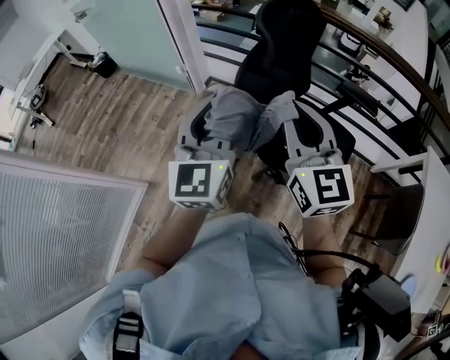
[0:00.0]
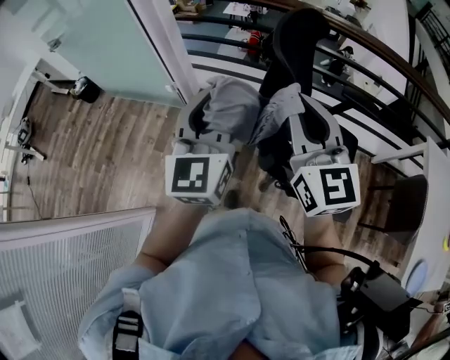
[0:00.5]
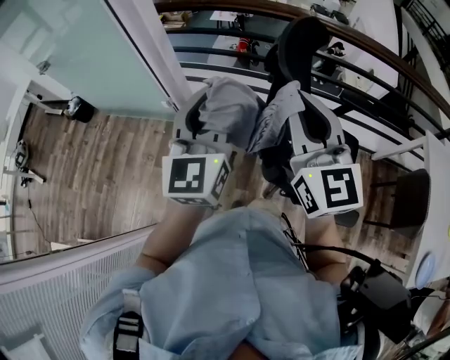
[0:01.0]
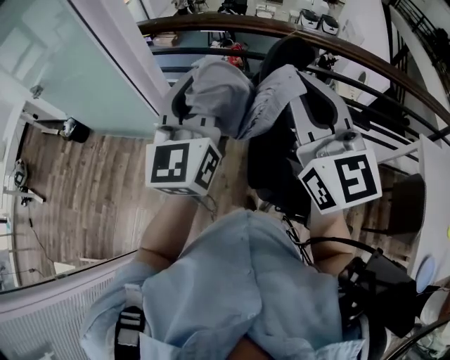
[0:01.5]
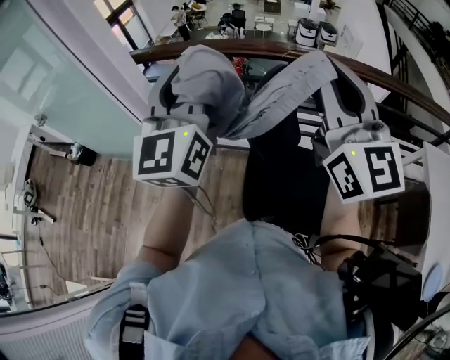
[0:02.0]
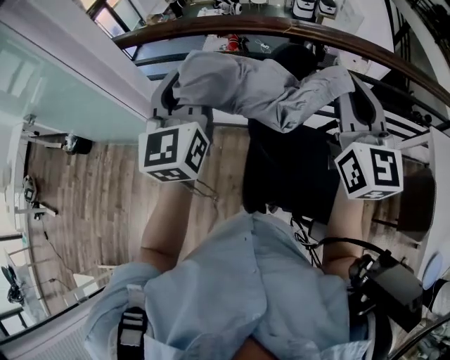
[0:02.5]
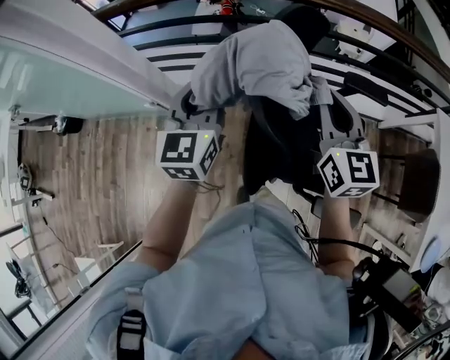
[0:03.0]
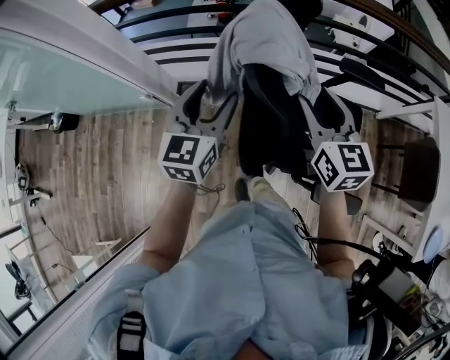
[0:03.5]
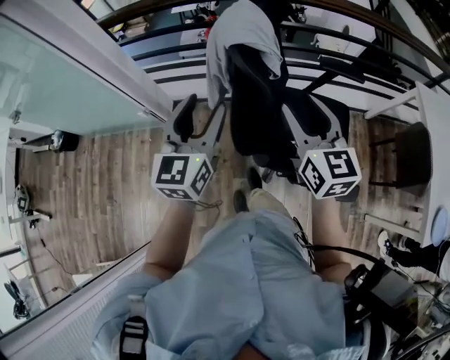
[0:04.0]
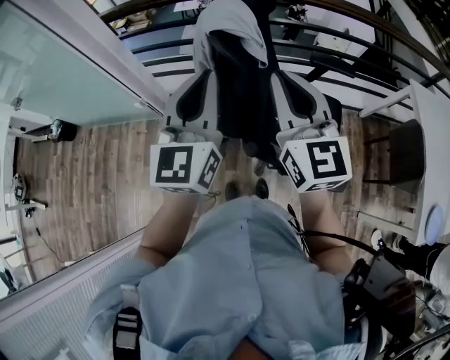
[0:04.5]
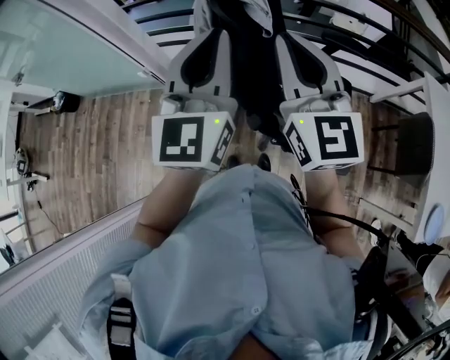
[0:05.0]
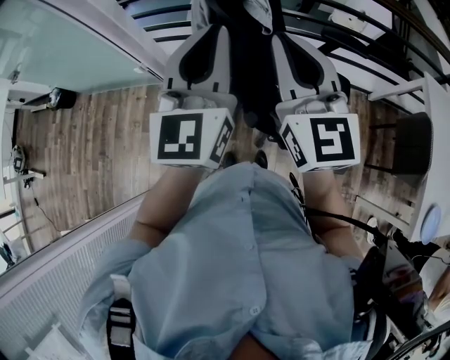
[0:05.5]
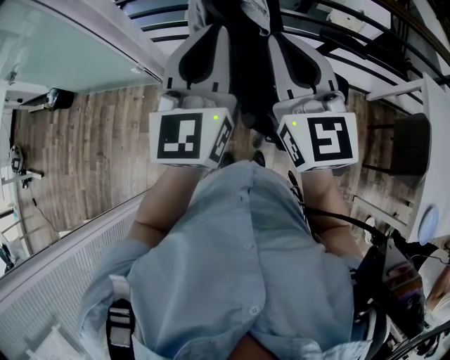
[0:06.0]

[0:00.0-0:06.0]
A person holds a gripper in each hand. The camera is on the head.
0:00.0 to 0:02.0: Both grippers move forward and upward, some 35 cm. The left gripper swivels approximately 20 degrees, while the right gripper turns by some 20 degrees.
0:02.0 to 0:04.0: The grippers both shift downward and backward by approximately 25 cm. The left gripper turns by some 30 degrees, and opens, while the right gripper rotates approximately 30 degrees, and opens.
0:04.0 to 0:06.0: The left gripper heads upward and to the right, covering approximately 15 cm, and closes up. The right gripper goes roughly 10 cm upward, and closes its fingers.

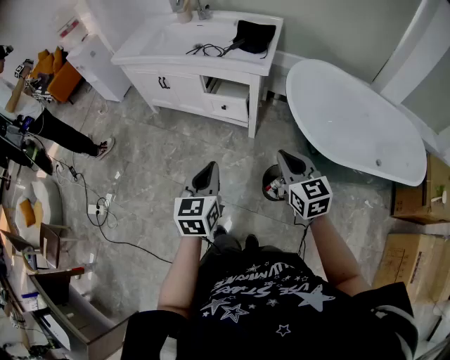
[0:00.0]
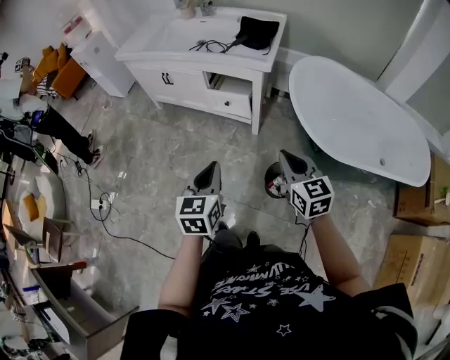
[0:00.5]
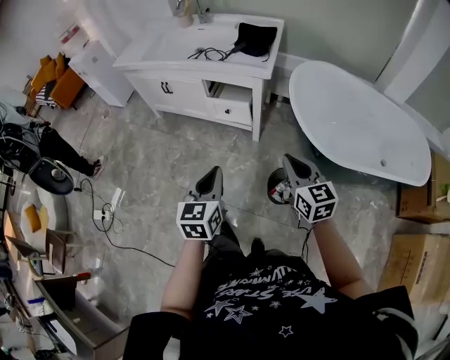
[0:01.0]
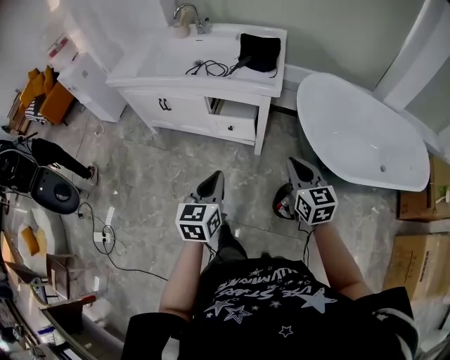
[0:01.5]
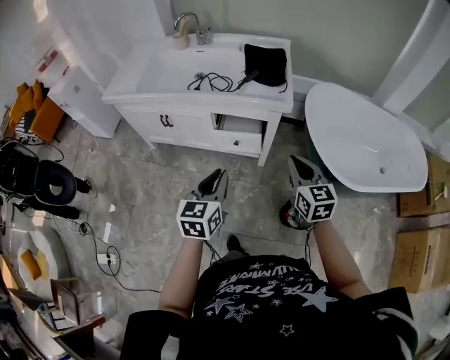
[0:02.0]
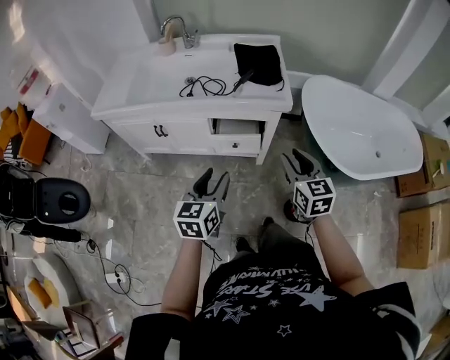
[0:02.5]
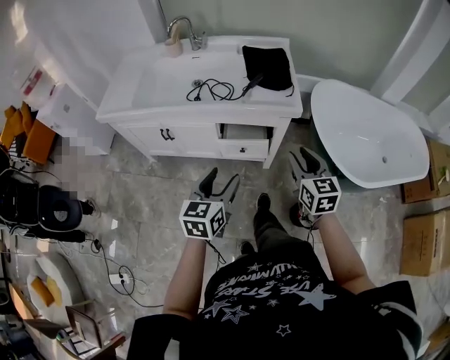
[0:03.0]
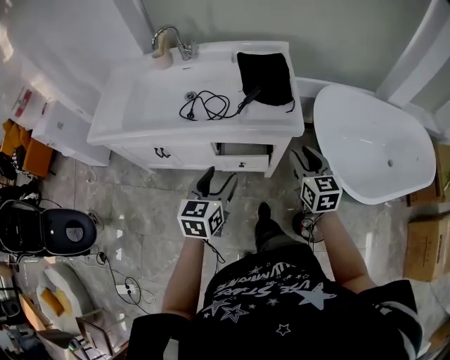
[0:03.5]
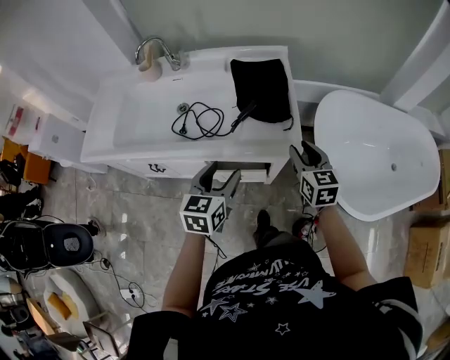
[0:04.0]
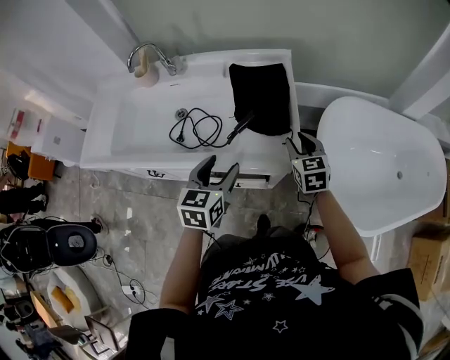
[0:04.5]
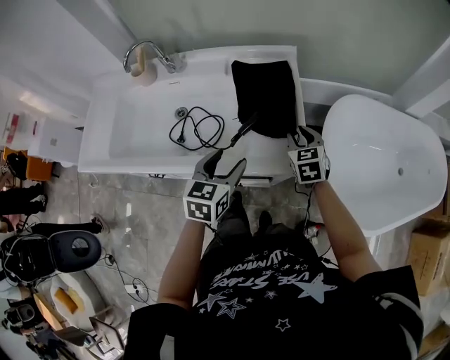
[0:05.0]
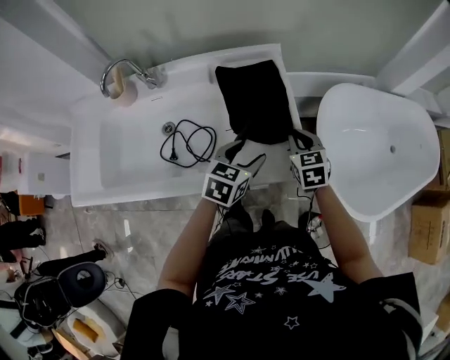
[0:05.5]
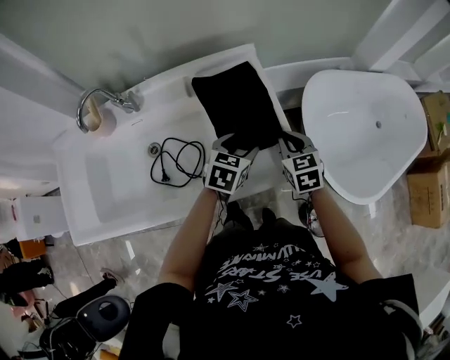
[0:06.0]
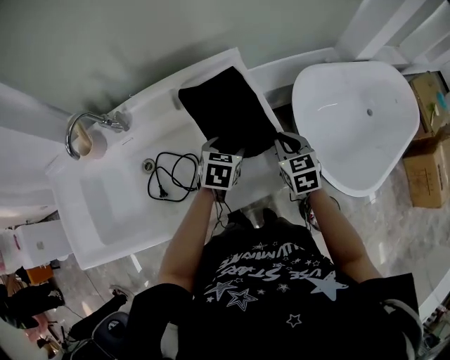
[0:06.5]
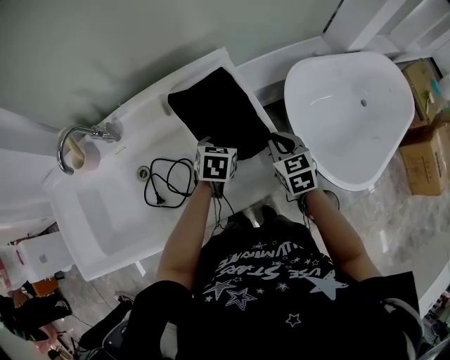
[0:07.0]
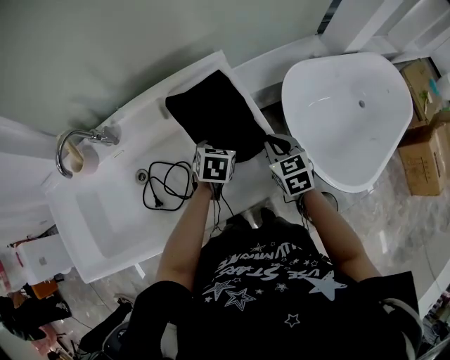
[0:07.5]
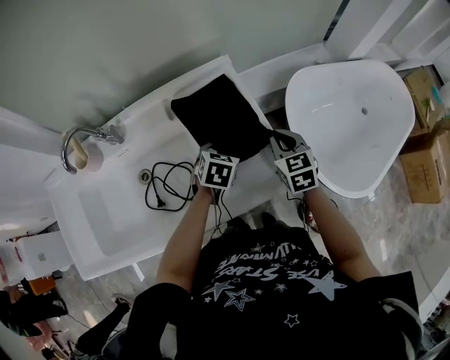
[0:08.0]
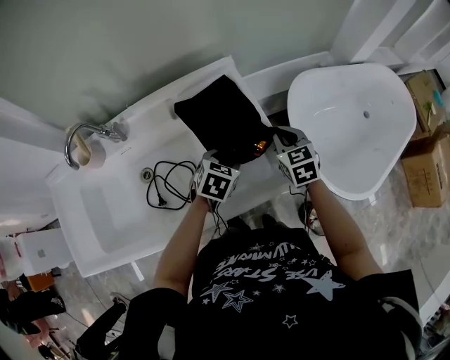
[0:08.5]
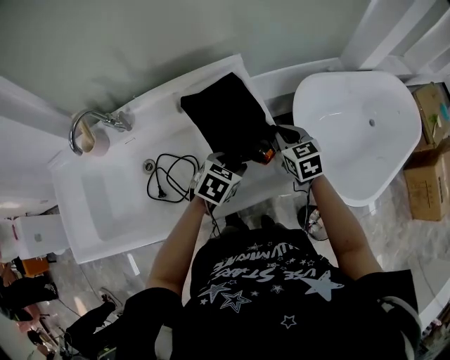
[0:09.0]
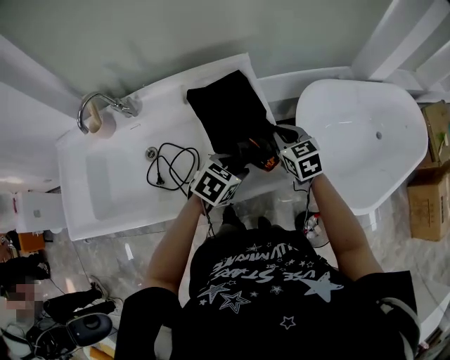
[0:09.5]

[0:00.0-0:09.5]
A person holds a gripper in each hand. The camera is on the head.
0:00.0 to 0:02.0: Both grippers travel together forward and to the left, approximately 20 cm.
0:02.0 to 0:04.0: The two grippers go approximately 30 cm forward. The left gripper opens its fingers. Meanwhile the right gripper opens up.
0:04.0 to 0:05.5: The right gripper heads forward and downward, covering roughly 15 cm, and closes. Meanwhile the left gripper travels forward by approximately 15 cm, and changes its angle by roughly 30 degrees.
0:05.5 to 0:07.5: The left gripper goes roughly 15 cm forward and downward.
0:07.5 to 0:09.5: The left gripper shifts some 10 cm backward and to the right.

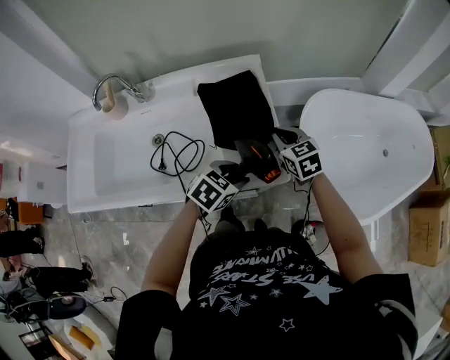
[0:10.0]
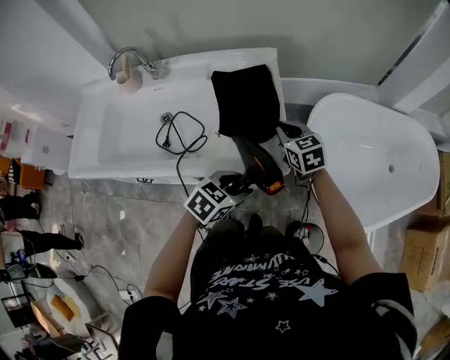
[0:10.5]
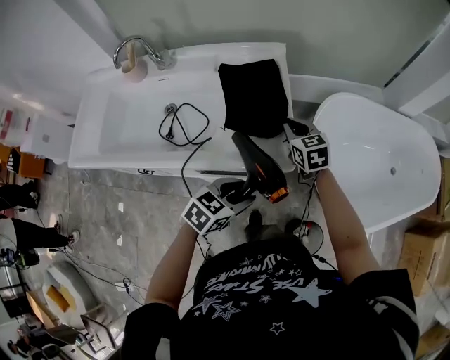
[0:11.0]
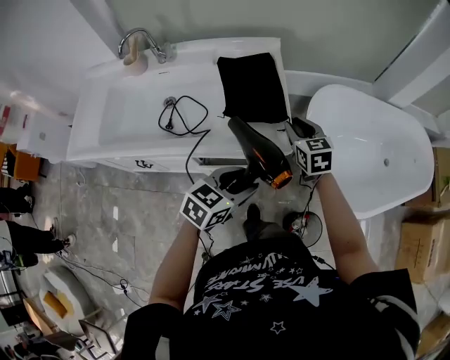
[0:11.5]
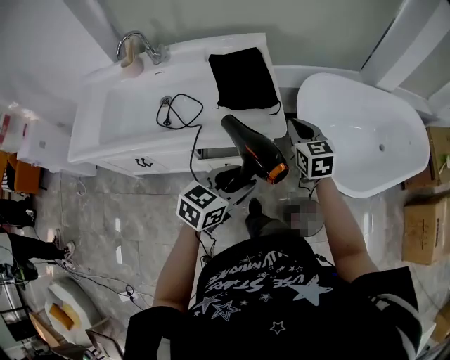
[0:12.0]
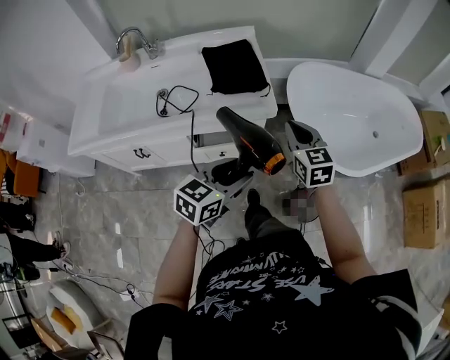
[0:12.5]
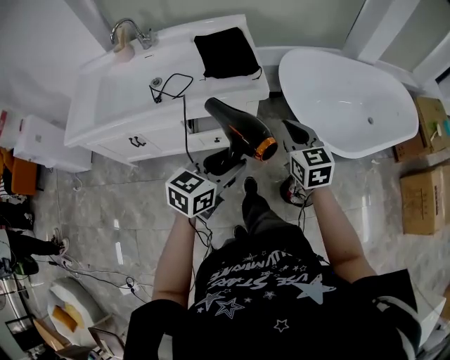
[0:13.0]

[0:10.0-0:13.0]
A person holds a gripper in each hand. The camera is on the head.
0:10.0 to 0:11.5: The left gripper travels backward by approximately 15 cm, and rotates roughly 20 degrees, while the right gripper goes about 5 cm backward, and opens its fingers.
0:11.5 to 0:13.0: The right gripper shifts roughly 25 cm backward and to the right, and closes. The left gripper shifts roughly 15 cm backward.

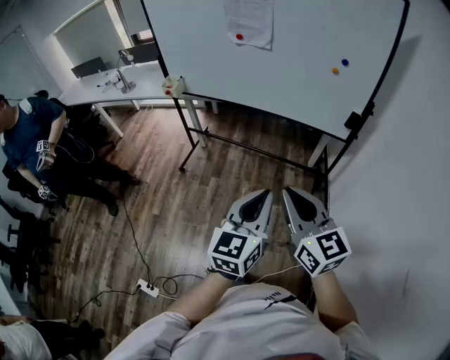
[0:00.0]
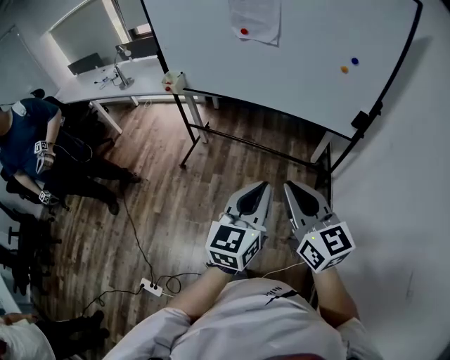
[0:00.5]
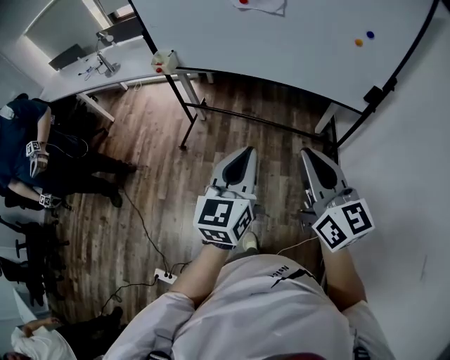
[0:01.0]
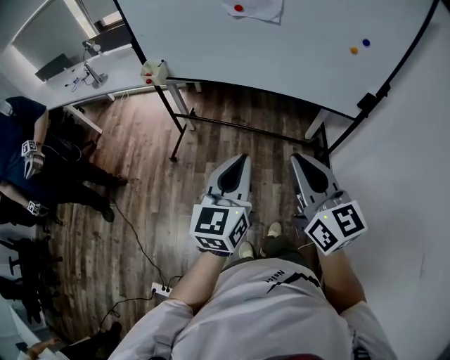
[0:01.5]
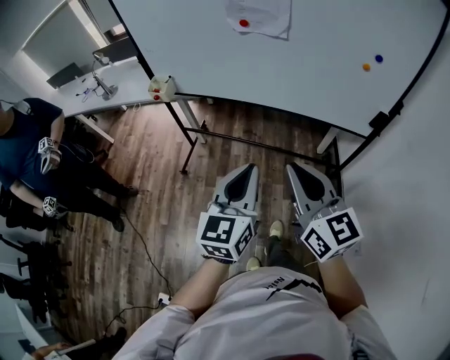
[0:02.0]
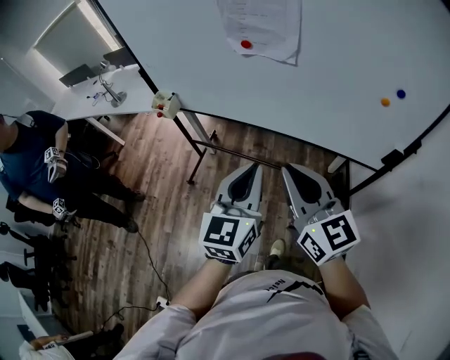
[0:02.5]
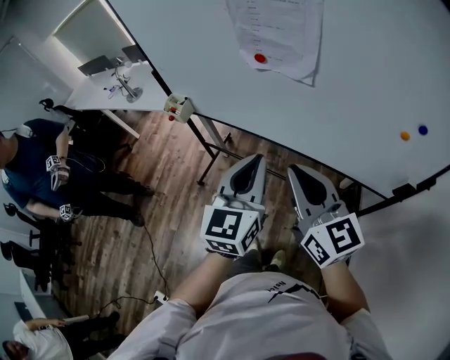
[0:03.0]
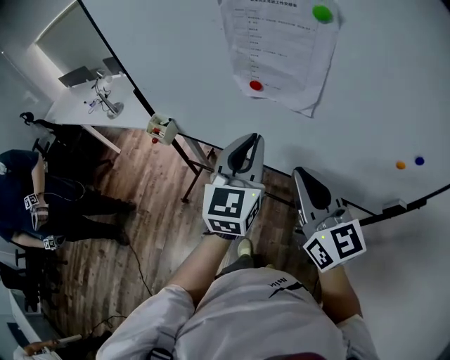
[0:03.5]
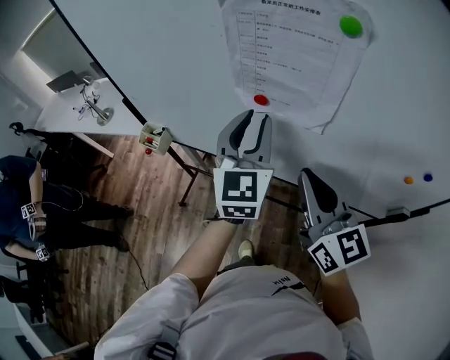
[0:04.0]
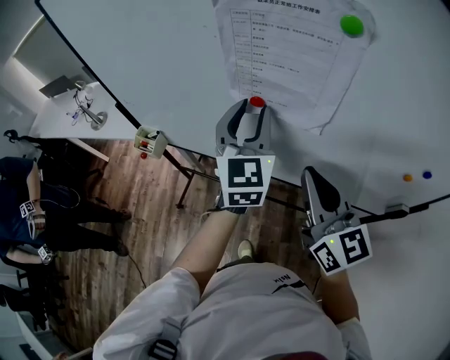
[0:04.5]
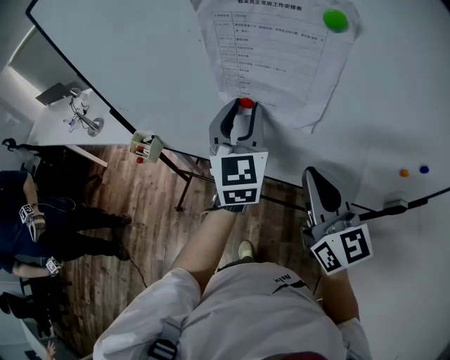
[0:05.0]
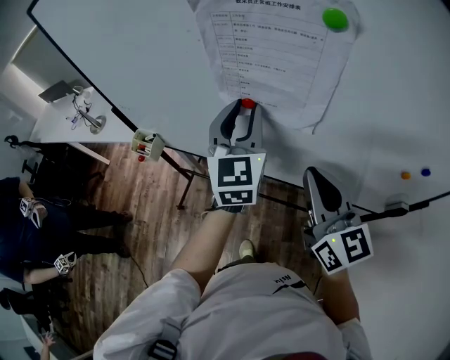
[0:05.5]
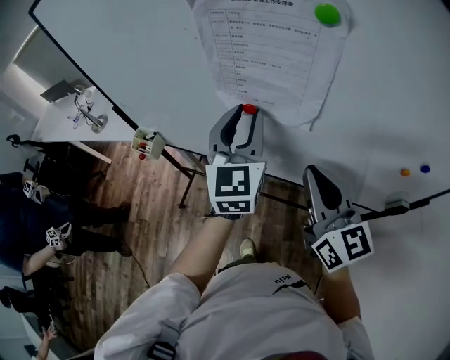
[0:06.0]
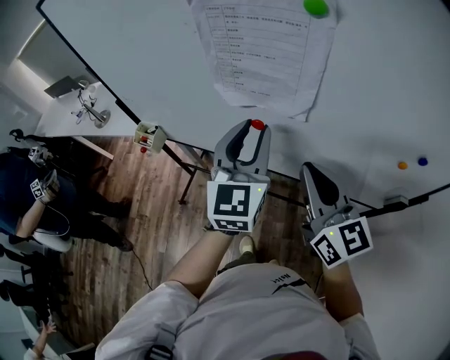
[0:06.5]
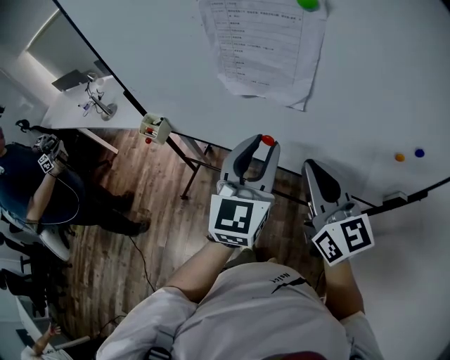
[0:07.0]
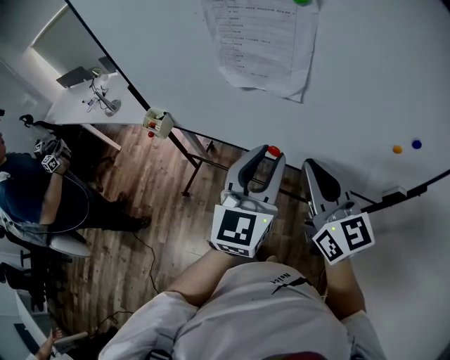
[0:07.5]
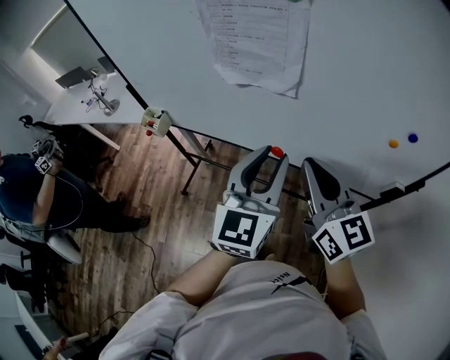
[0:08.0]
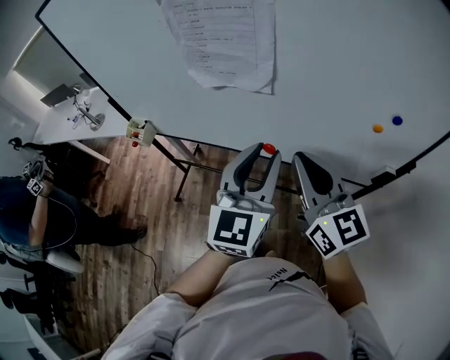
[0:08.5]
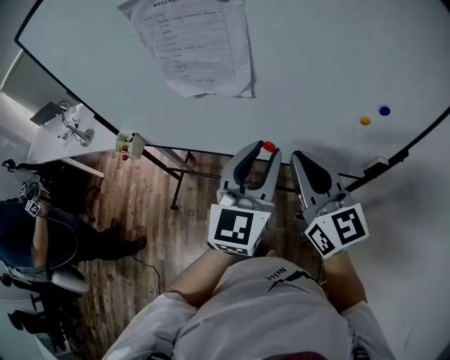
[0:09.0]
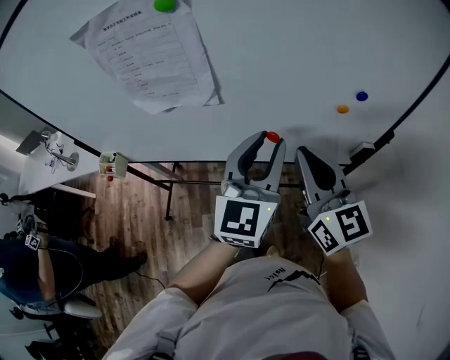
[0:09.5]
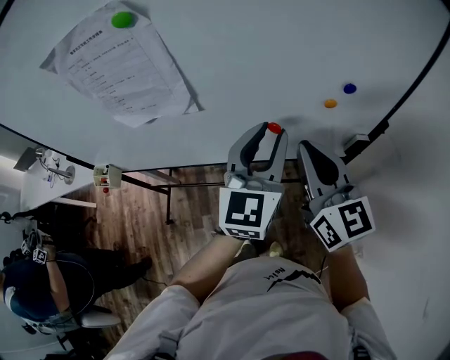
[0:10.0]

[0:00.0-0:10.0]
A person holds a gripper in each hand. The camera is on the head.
0:00.0 to 0:02.0: The left gripper moves forward and to the left, about 25 cm; the right gripper heads forward, covering roughly 20 cm.
0:02.0 to 0:04.0: Both grippers travel together forward, approximately 40 cm. The left gripper turns by about 20 degrees, and opens.
0:04.0 to 0:06.0: There are only small adjustments of the grippers.
0:06.0 to 0:08.0: The right gripper moves backward, roughly 10 cm. Meanwhile the left gripper travels backward by approximately 20 cm.
0:08.0 to 0:10.0: The right gripper heads to the right, covering some 15 cm, and rotates some 20 degrees. The left gripper goes approximately 20 cm to the right and forward.
